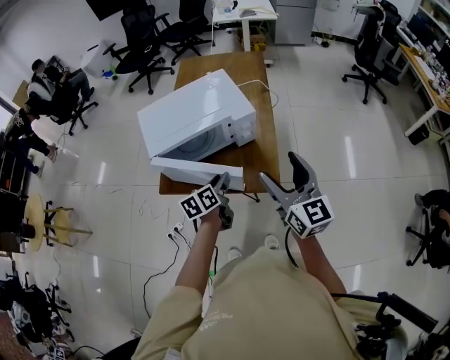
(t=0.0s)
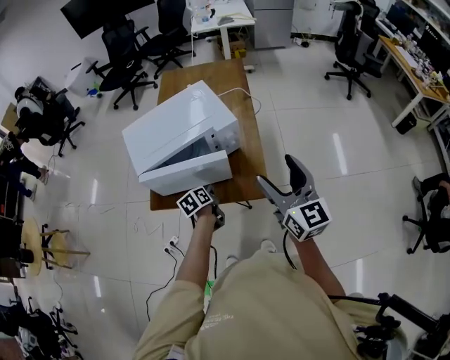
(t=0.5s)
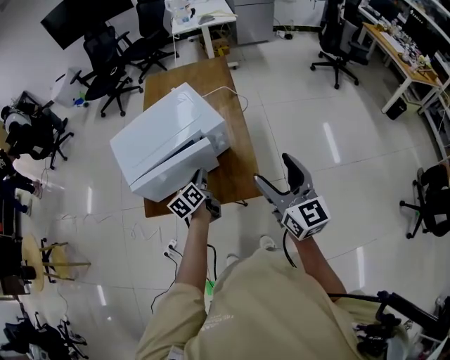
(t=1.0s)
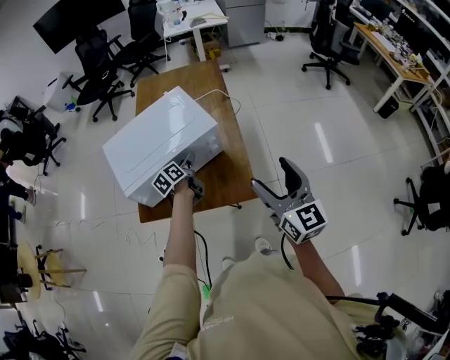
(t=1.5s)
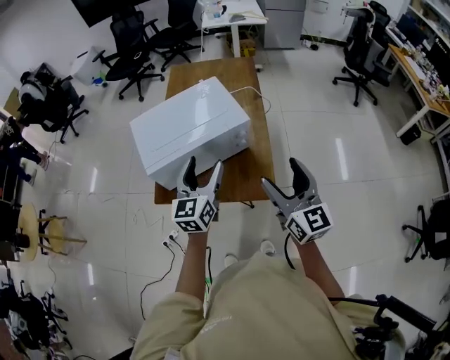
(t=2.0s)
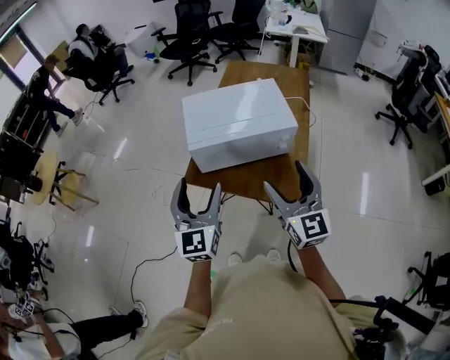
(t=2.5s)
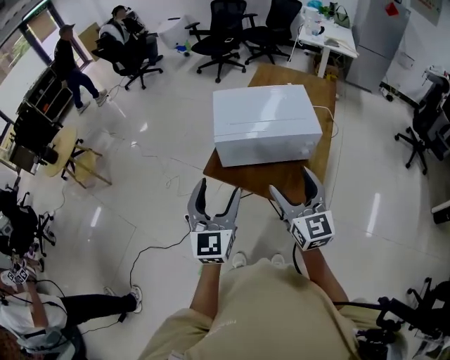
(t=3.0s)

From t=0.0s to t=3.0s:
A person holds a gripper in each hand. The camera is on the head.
From t=0.0s to t=1.5s: The right gripper travels upward by approximately 5 cm. The left gripper travels forward by about 20 cm, and closes and opens again.
From t=1.5s to t=3.0s: The left gripper shifts by roughly 40 cm, and tilts its fingers some 40 degrees upward. The right gripper ends up roughly 20 cm from where it was, and changes its angle by roughly 20 degrees.

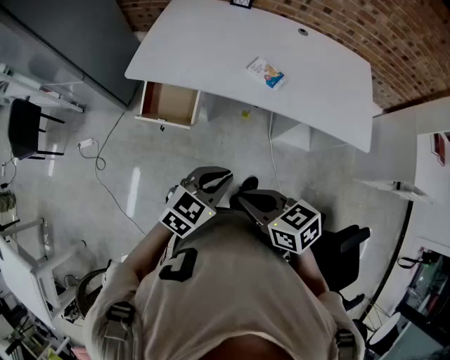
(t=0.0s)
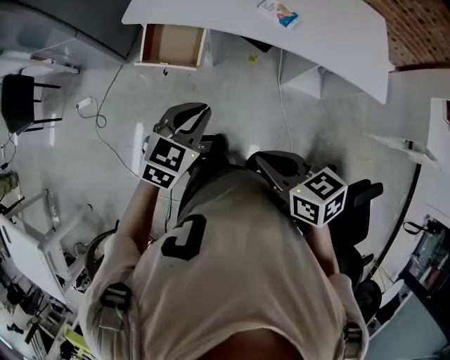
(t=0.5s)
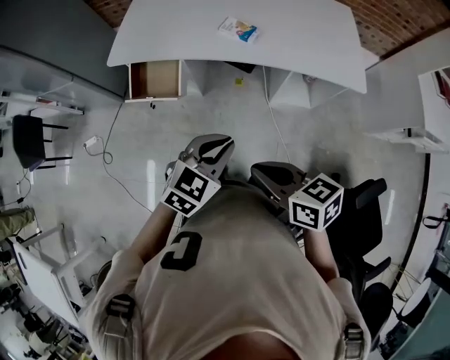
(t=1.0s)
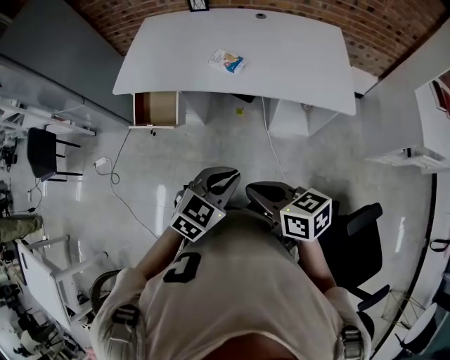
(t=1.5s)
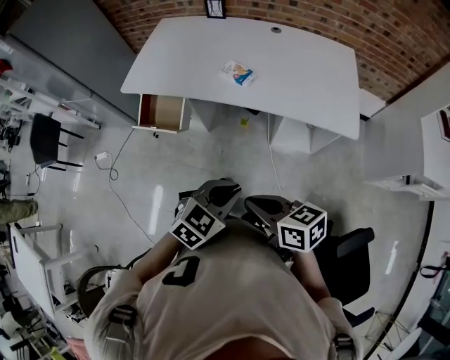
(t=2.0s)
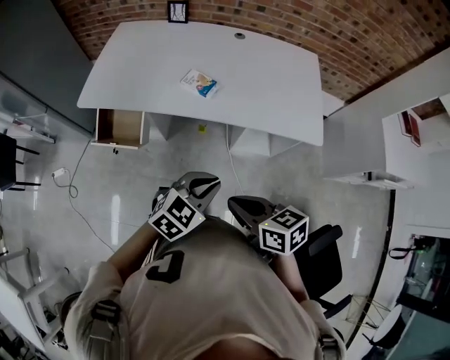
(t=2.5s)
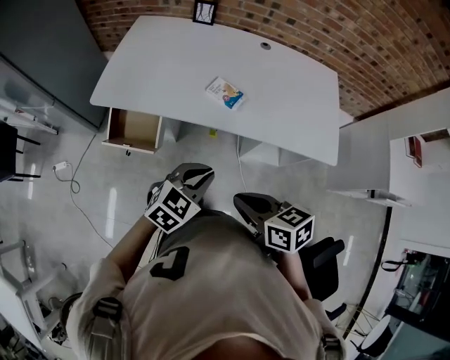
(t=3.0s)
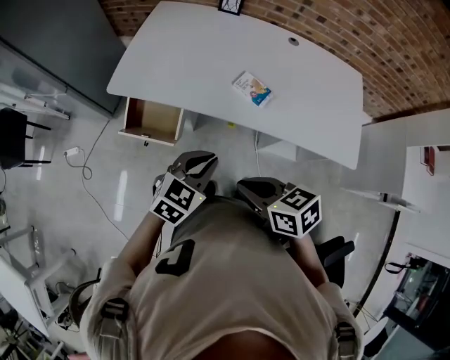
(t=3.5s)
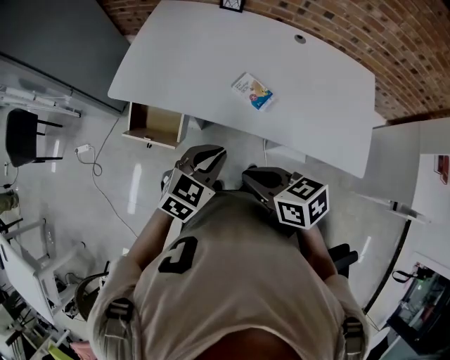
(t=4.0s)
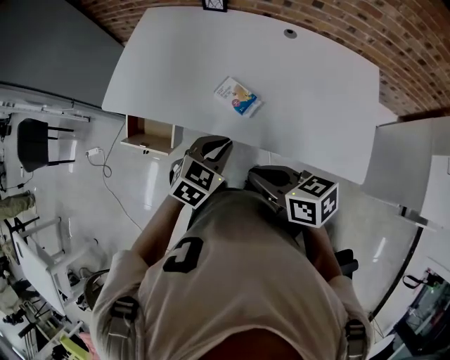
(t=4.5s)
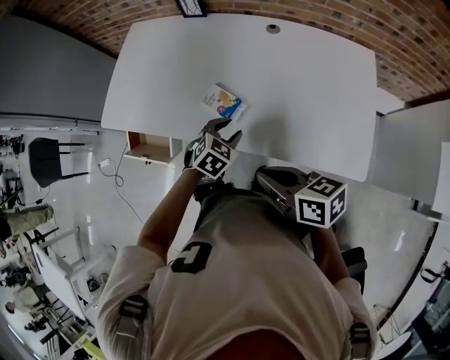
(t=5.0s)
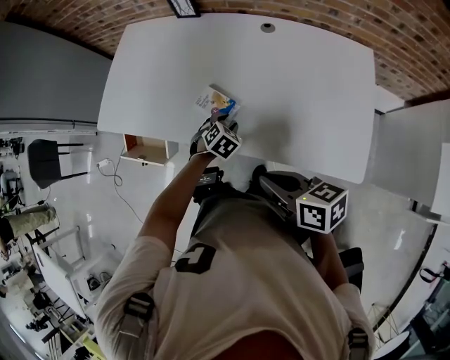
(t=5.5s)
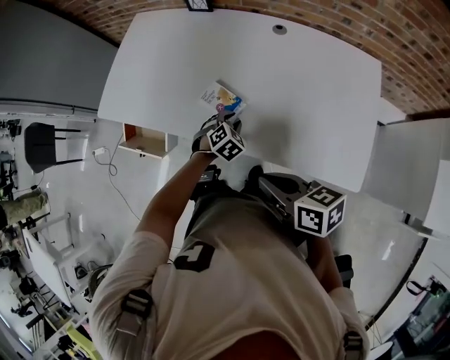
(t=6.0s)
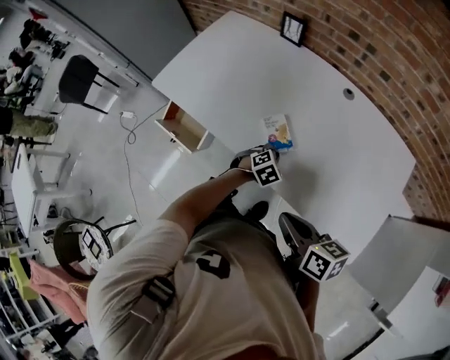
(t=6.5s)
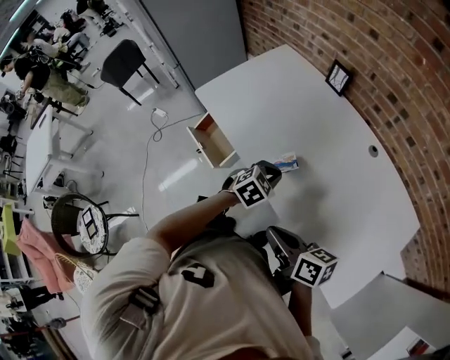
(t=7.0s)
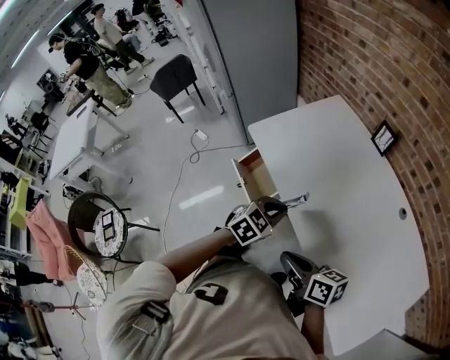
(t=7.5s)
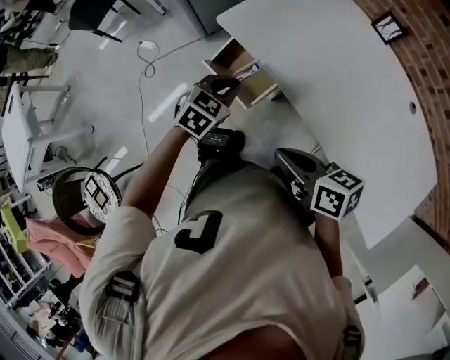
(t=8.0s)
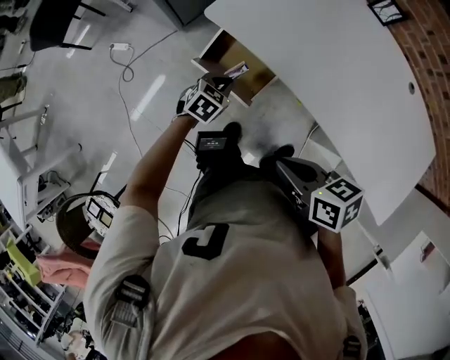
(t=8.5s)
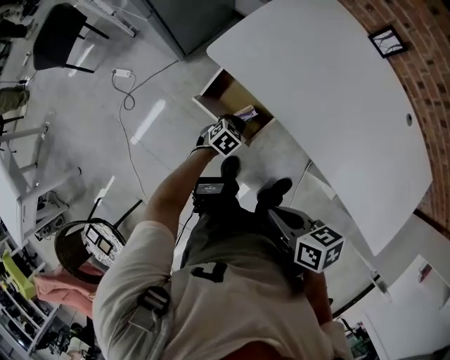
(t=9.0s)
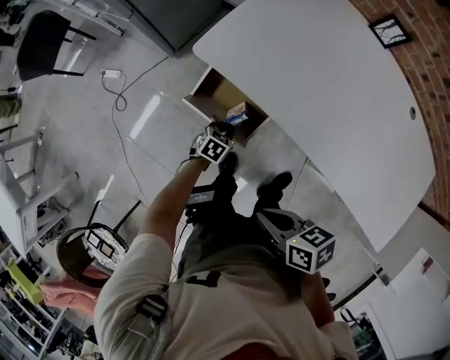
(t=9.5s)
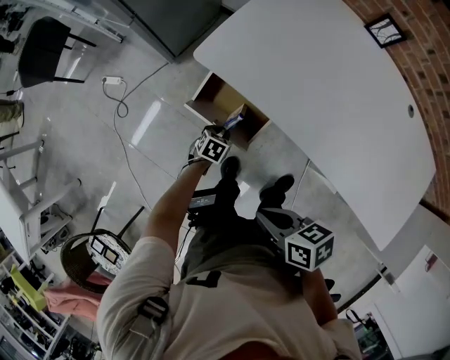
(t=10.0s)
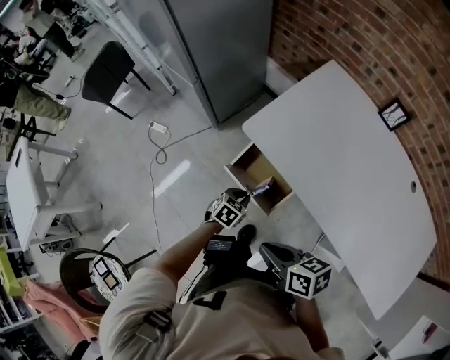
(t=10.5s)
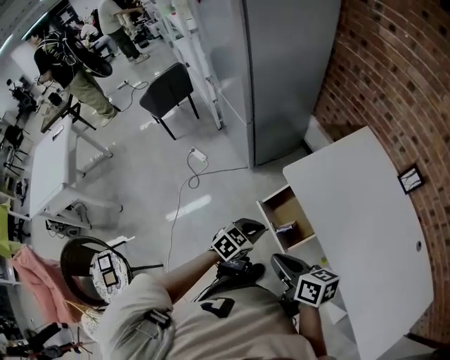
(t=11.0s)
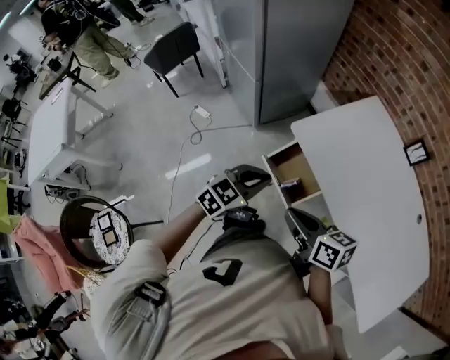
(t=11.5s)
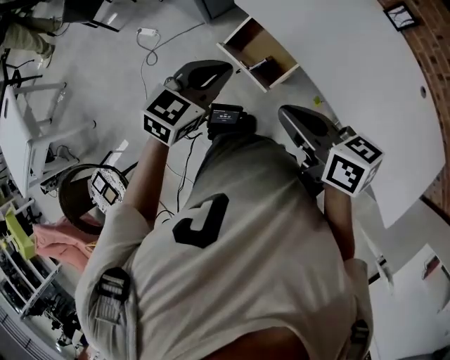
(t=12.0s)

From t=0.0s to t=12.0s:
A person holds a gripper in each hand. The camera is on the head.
From t=0.0s to t=2.0s: The right gripper shifts approximately 20 cm to the right, while the left gripper shifts approximately 20 cm to the right and backward.
From t=2.0s to t=4.0s: The grippers both shift forward by roughly 25 cm.
From t=4.0s to t=6.0s: The left gripper goes about 35 cm to the right, downward and forward, changes its angle by approximately 30 degrees, and opens; the right gripper heads to the right, covering approximately 20 cm.
From t=6.0s to t=8.0s: The right gripper moves to the left and forward, about 35 cm, and swivels approximately 30 degrees, while the left gripper is displaced to the left by about 40 cm, swivels about 40 degrees, and closes.
From t=8.0s to t=10.0s: The right gripper is displaced downward by approximately 10 cm, while the left gripper travels downward by roughly 30 cm, and changes its angle by approximately 30 degrees.
From t=10.0s to t=12.0s: The right gripper moves upward, some 15 cm, and rotates some 30 degrees. The left gripper travels upward by approximately 40 cm, and points its fingers about 40 degrees further upward.

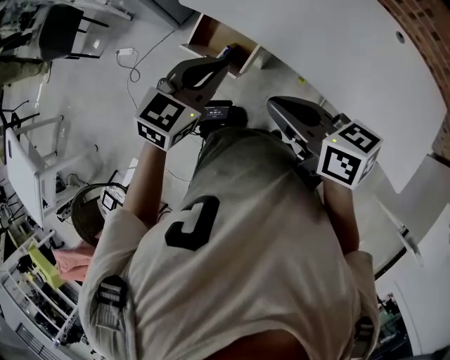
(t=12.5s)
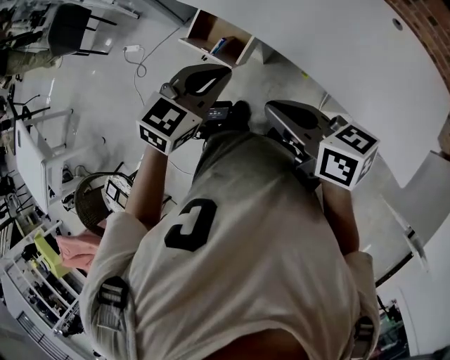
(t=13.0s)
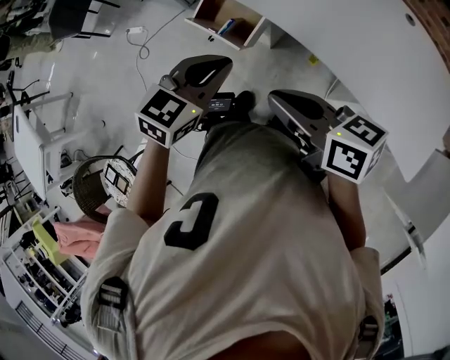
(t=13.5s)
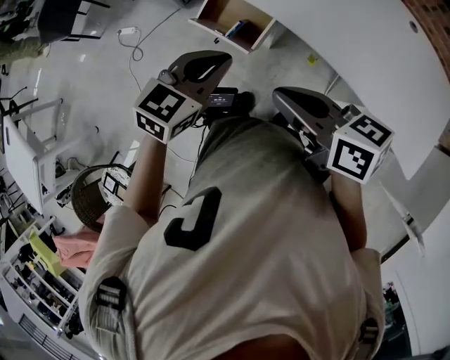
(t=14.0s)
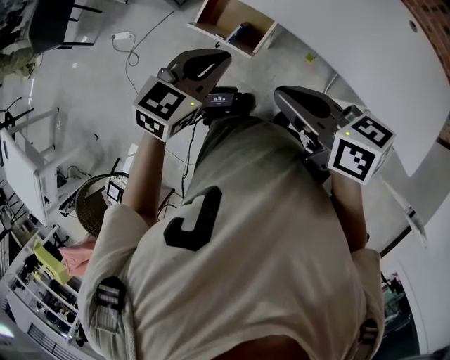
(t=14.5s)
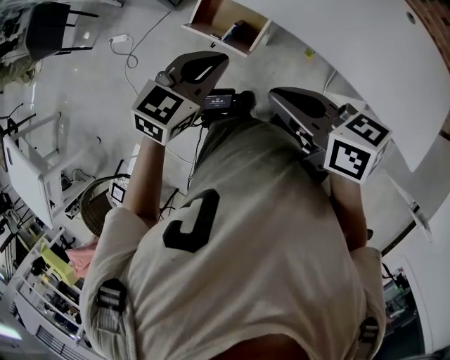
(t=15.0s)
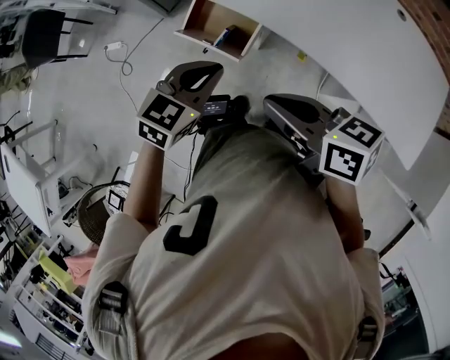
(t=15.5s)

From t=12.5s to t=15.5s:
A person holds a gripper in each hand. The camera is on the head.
From t=12.5s to t=14.0s: The right gripper is displaced to the left by some 5 cm, while the left gripper is displaced to the left and backward by about 10 cm.
From t=14.0s to t=15.5s: The grippers make only small movements.

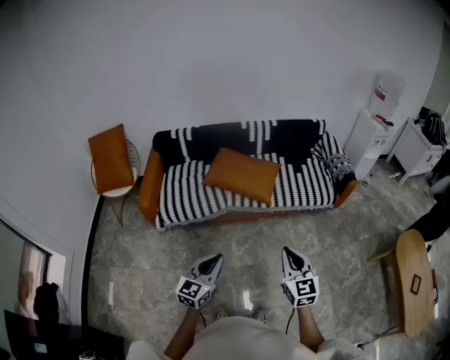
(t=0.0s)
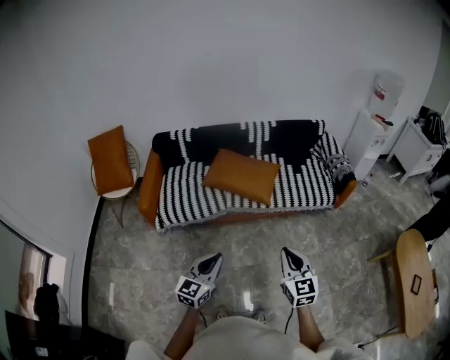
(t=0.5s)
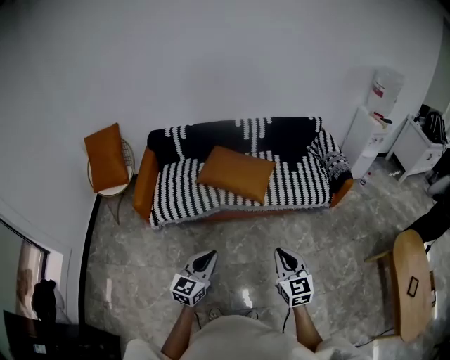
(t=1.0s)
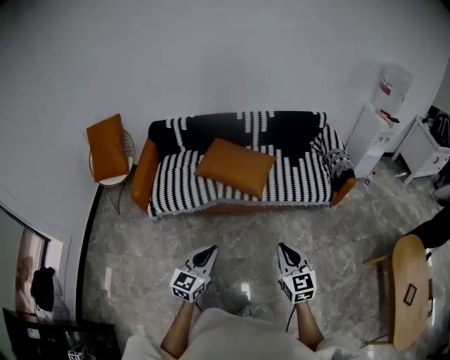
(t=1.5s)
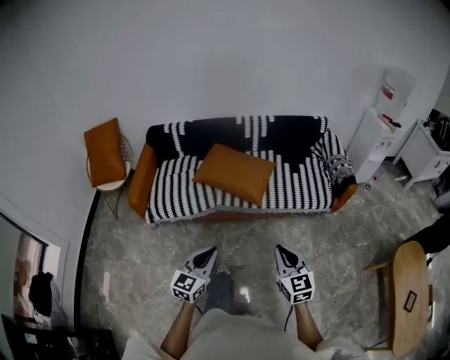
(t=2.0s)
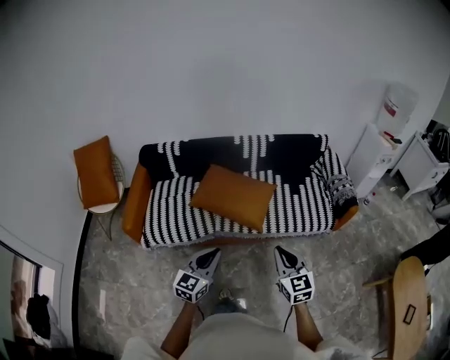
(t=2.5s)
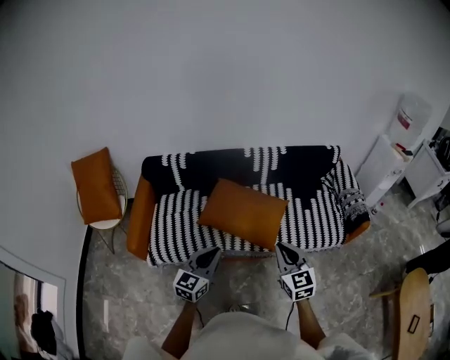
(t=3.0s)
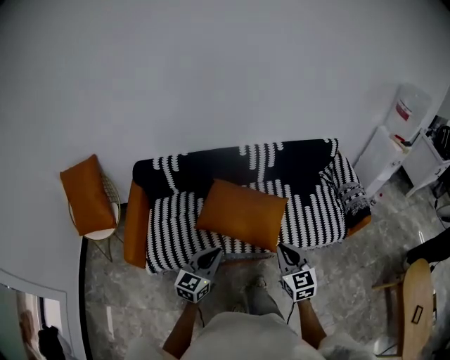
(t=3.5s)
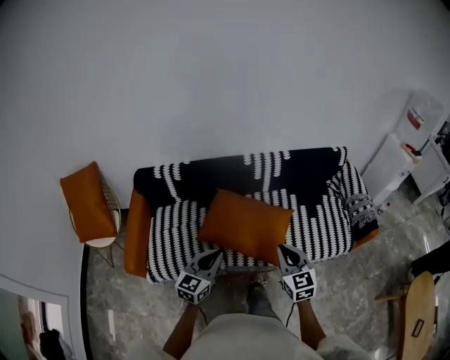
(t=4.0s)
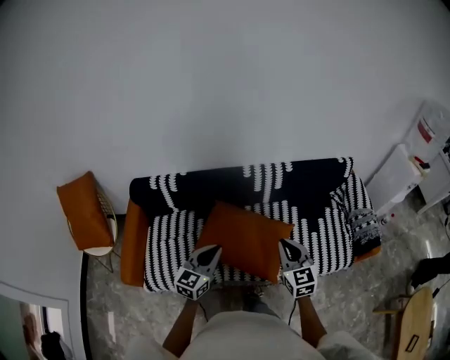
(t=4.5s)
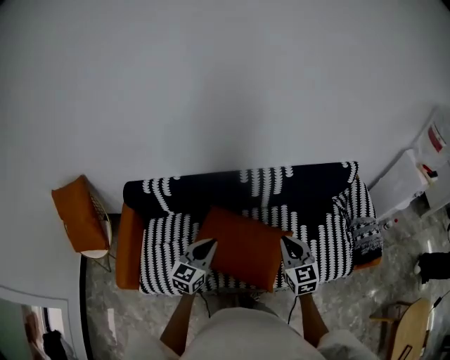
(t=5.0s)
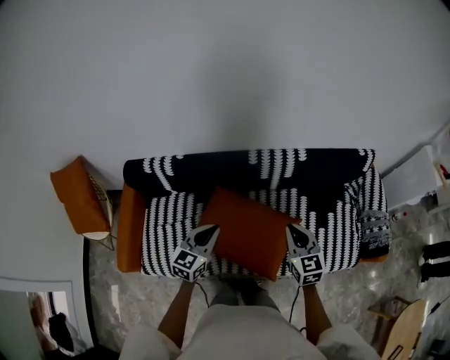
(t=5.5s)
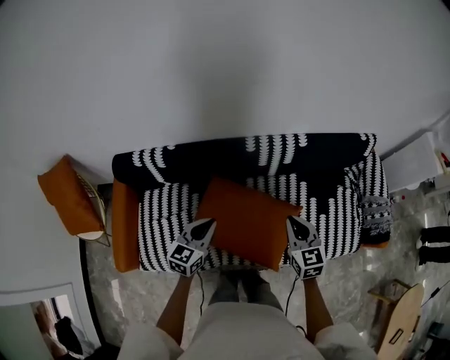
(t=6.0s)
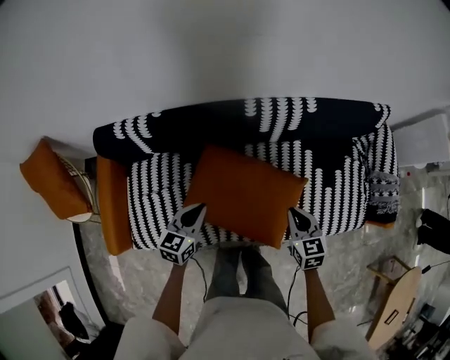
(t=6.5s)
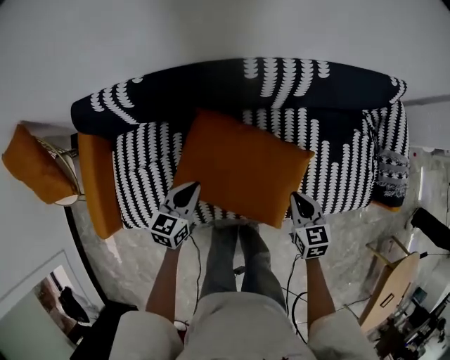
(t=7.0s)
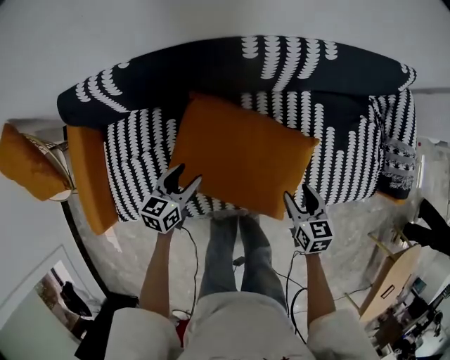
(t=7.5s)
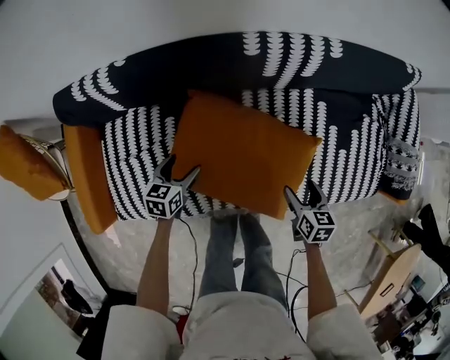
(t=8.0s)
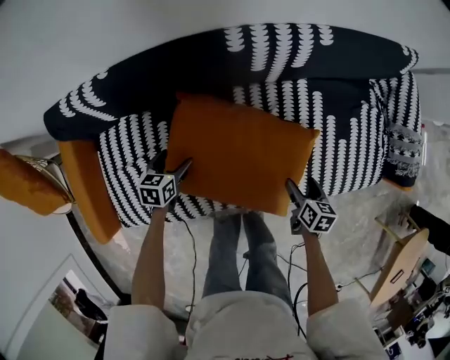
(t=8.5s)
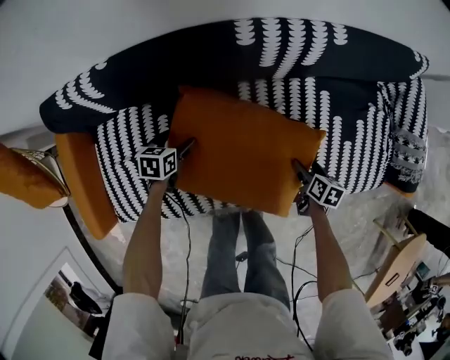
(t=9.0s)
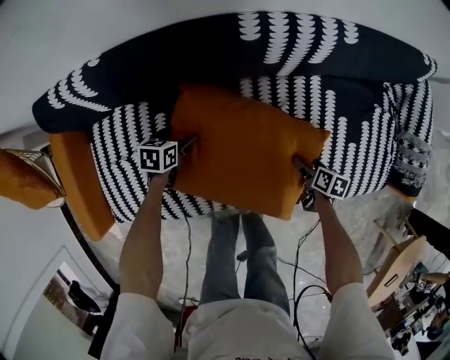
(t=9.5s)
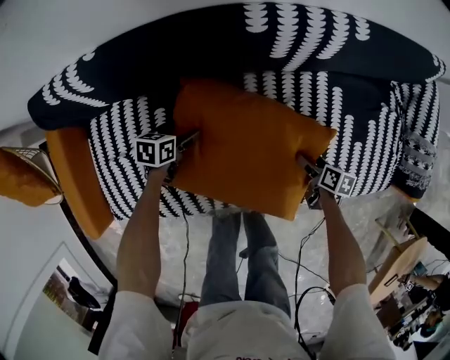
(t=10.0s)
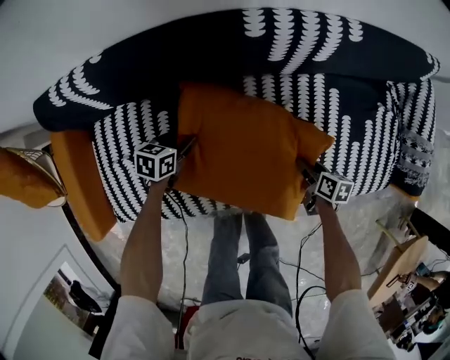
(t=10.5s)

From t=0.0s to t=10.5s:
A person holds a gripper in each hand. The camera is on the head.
From t=0.0s to t=2.0s: Both grippers move forward and to the right, roughly 10 cm.
From t=2.0s to t=4.0s: Both grippers are carried forward, approximately 40 cm.
From t=4.0s to t=6.5s: The grippers both shift forward and downward by some 35 cm. The left gripper changes its angle by approximately 20 degrees; the right gripper swivels roughly 20 degrees.
From t=6.5s to t=8.5s: Both grippers travel together downward, approximately 25 cm. The left gripper changes its angle by some 30 degrees, and opens up. Meanwhile the right gripper changes its angle by roughly 40 degrees, and opens up.
From t=8.5s to t=10.5s: The right gripper heads downward and forward, covering some 10 cm, and closes its fingers. The left gripper goes some 5 cm forward, and closes its fingers.
